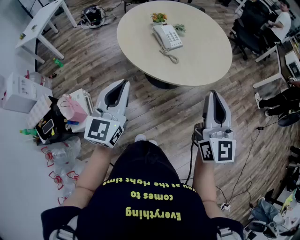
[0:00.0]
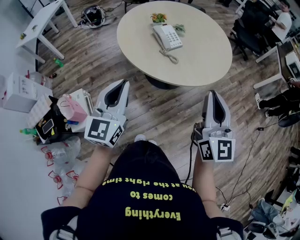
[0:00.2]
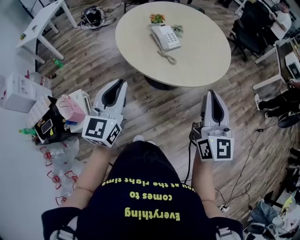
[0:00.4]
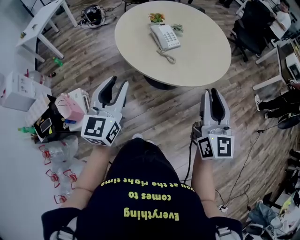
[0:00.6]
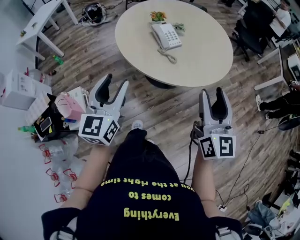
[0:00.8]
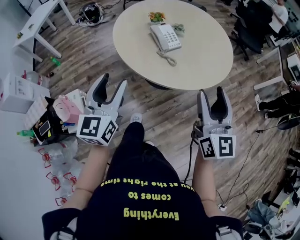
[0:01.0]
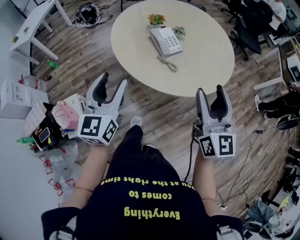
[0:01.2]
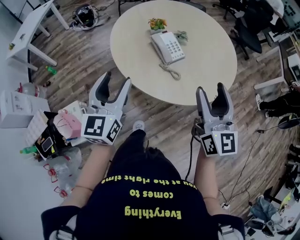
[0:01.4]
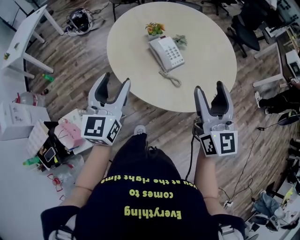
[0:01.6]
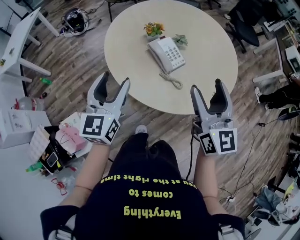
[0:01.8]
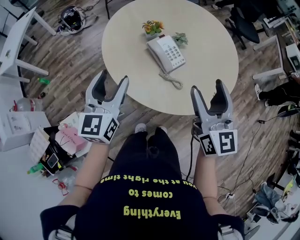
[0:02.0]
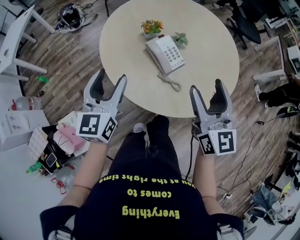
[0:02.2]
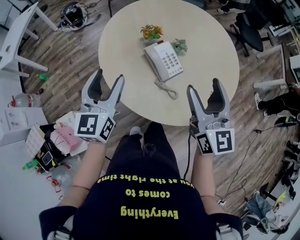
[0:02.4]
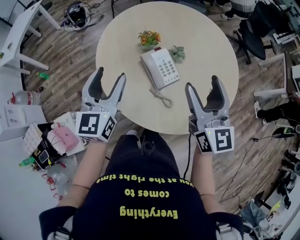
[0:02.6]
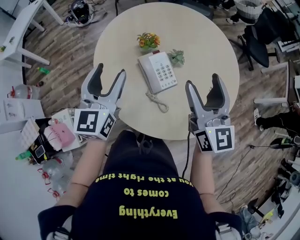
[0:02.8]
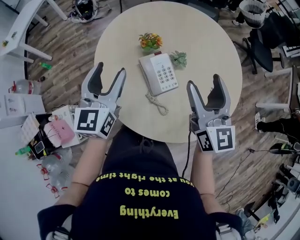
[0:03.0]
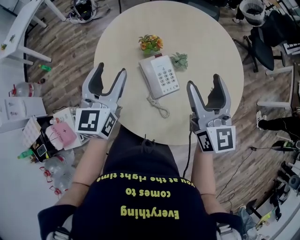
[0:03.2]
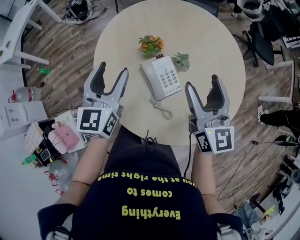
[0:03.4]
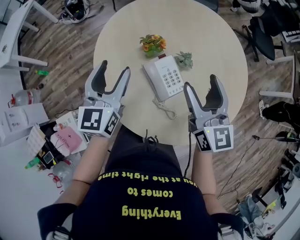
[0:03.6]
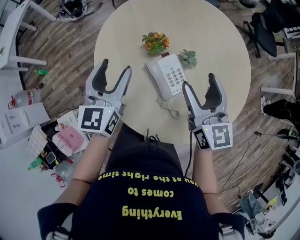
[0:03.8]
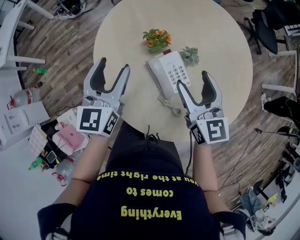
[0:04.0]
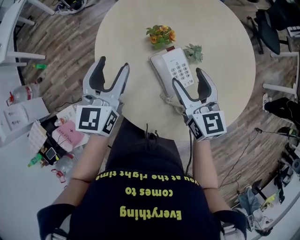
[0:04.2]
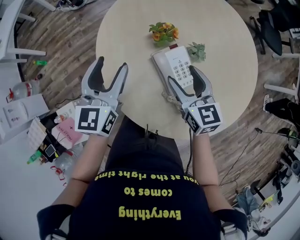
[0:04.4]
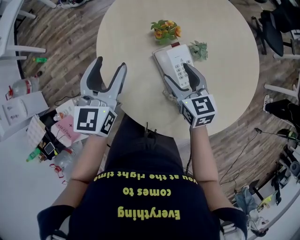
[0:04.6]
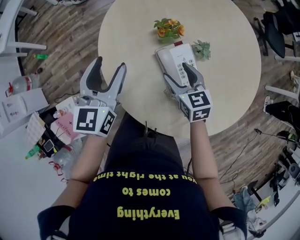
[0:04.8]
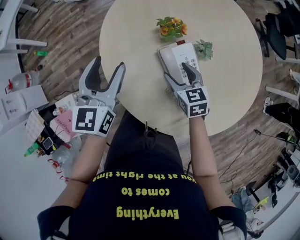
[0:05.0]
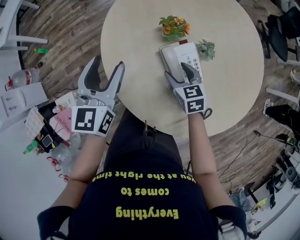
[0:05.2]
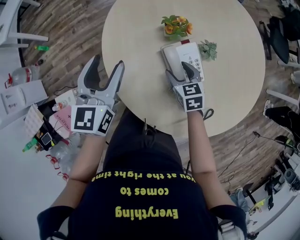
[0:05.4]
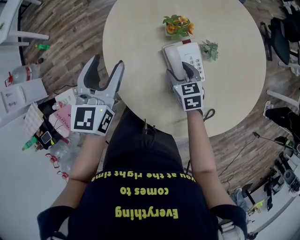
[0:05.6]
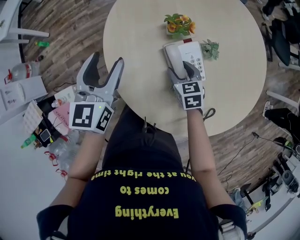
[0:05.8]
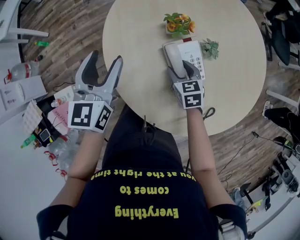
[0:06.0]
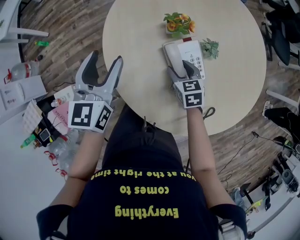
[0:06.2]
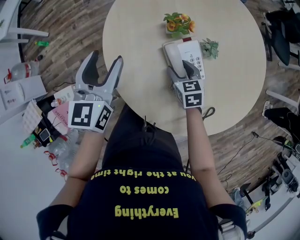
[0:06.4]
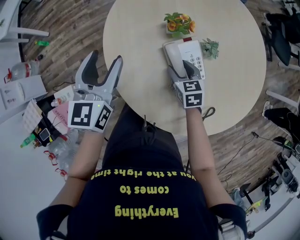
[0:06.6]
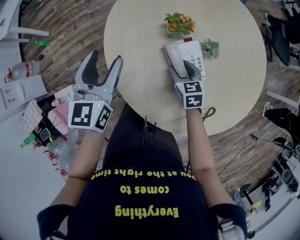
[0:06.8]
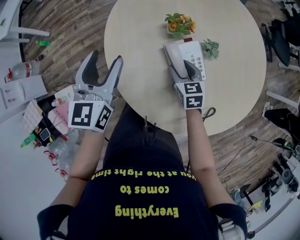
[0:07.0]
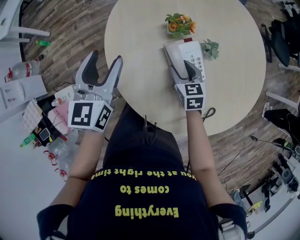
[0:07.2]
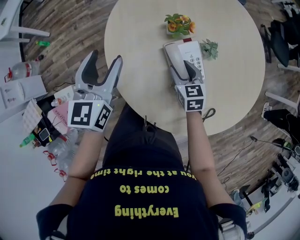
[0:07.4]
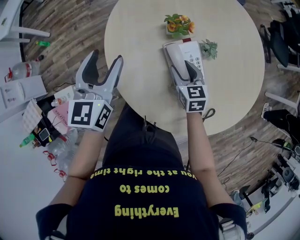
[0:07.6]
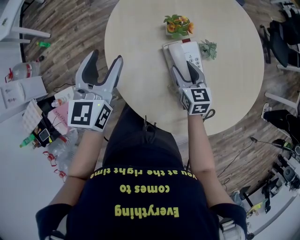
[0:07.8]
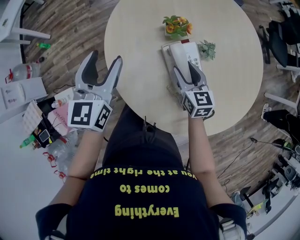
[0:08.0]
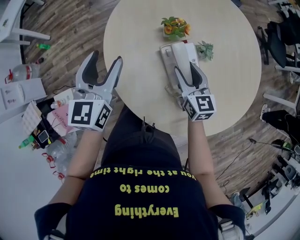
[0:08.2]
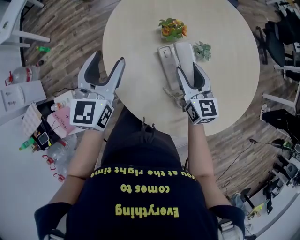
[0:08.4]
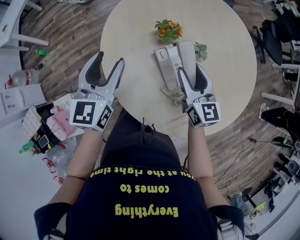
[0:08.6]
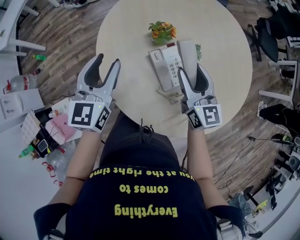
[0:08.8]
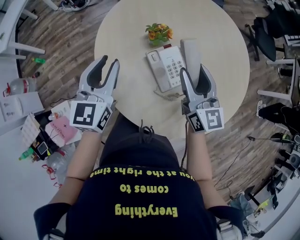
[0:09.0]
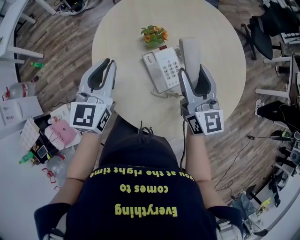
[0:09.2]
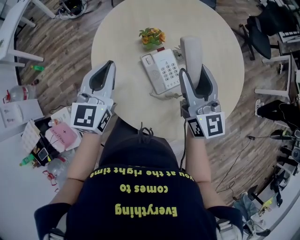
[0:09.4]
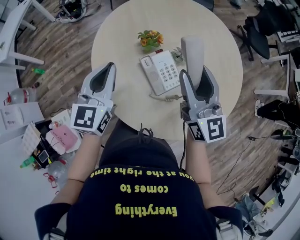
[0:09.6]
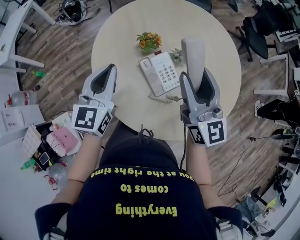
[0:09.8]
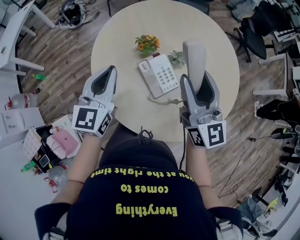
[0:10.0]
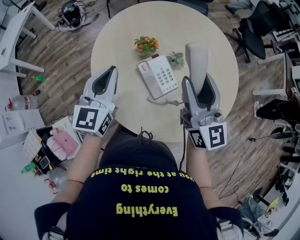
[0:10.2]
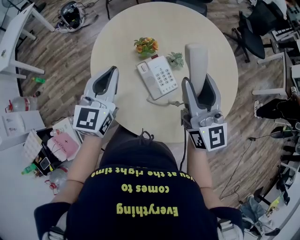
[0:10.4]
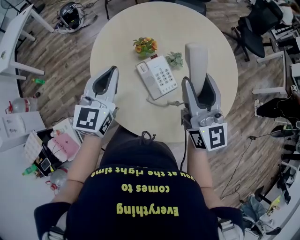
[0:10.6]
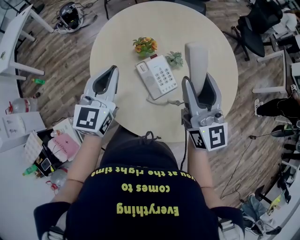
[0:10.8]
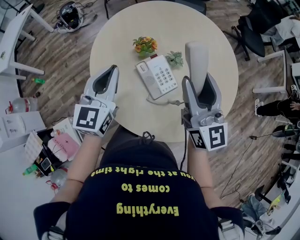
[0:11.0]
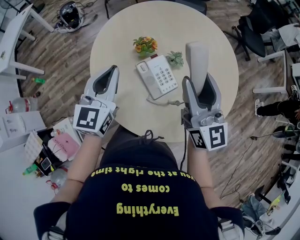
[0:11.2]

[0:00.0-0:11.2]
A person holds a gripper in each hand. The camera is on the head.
0:00.0 to 0:01.6: Both grippers move forward, roughly 25 cm. The right gripper opens up. Meanwhile the left gripper opens its fingers.
0:01.6 to 0:03.2: The grippers both shift forward by roughly 25 cm.
0:03.2 to 0:04.8: The left gripper goes roughly 10 cm downward and to the left. The right gripper shifts some 25 cm downward and to the left, and tips its fingers downward by roughly 30 degrees.
0:04.8 to 0:06.4: The right gripper shifts some 10 cm downward.
0:06.4 to 0:08.0: The right gripper heads upward, covering some 5 cm, and changes its angle by some 20 degrees.
0:08.0 to 0:09.6: The right gripper travels upward by about 25 cm, and angles its fingers upward, by roughly 30 degrees; the left gripper heads to the right, covering about 10 cm, and closes its fingers.
0:09.6 to 0:11.2: The grippers move only a little.

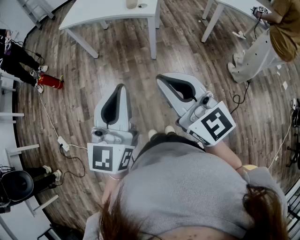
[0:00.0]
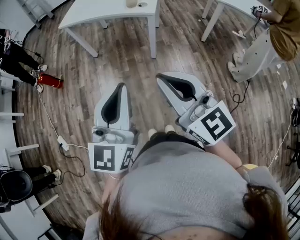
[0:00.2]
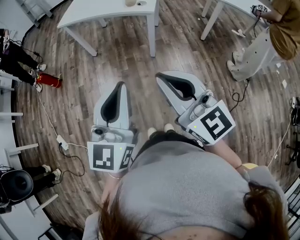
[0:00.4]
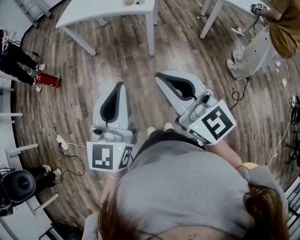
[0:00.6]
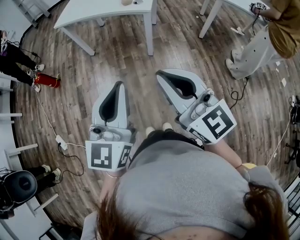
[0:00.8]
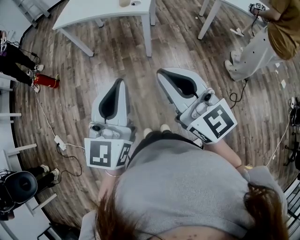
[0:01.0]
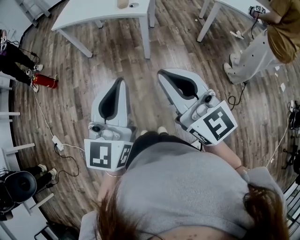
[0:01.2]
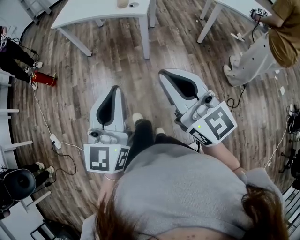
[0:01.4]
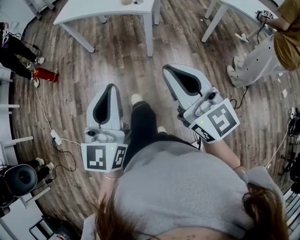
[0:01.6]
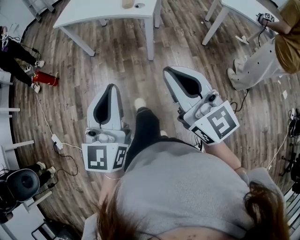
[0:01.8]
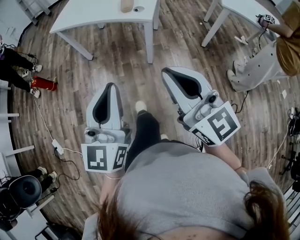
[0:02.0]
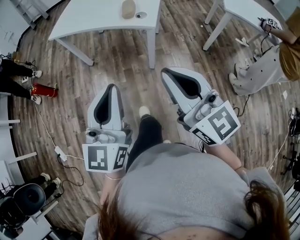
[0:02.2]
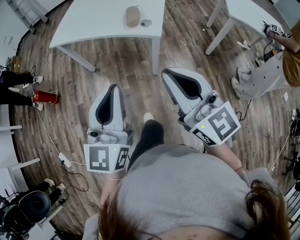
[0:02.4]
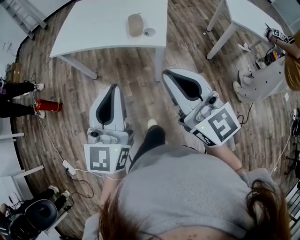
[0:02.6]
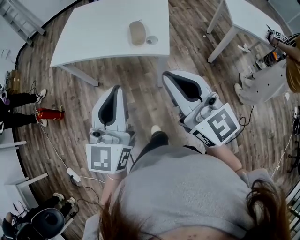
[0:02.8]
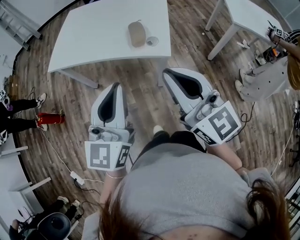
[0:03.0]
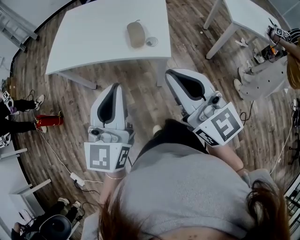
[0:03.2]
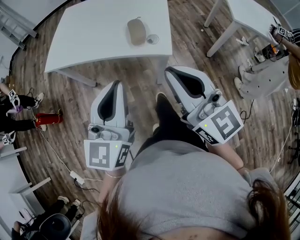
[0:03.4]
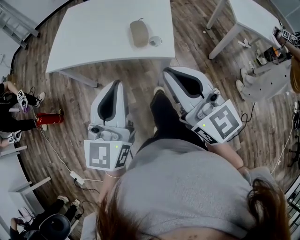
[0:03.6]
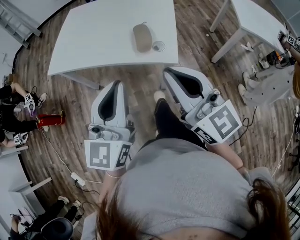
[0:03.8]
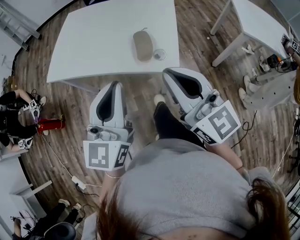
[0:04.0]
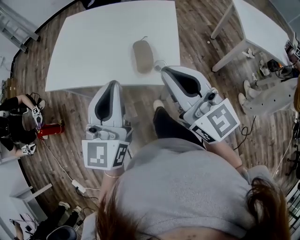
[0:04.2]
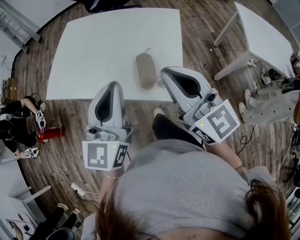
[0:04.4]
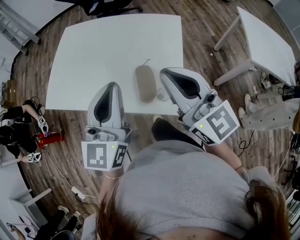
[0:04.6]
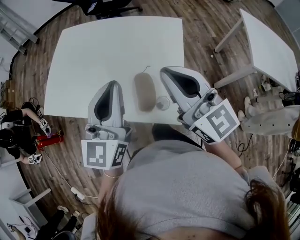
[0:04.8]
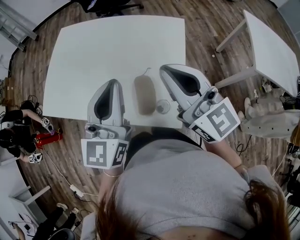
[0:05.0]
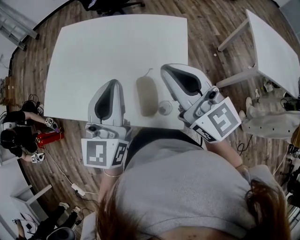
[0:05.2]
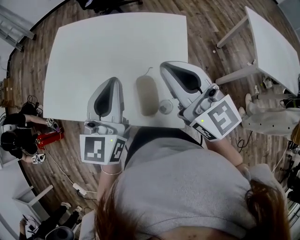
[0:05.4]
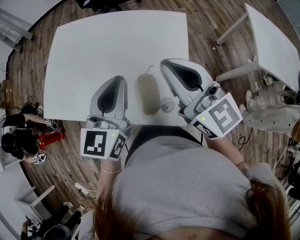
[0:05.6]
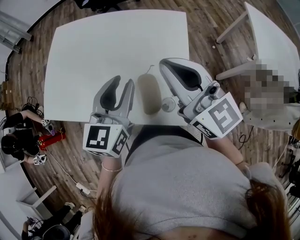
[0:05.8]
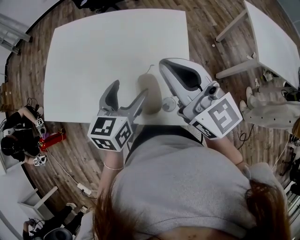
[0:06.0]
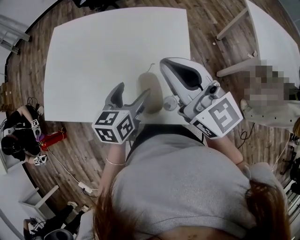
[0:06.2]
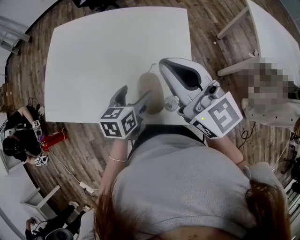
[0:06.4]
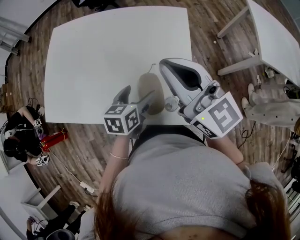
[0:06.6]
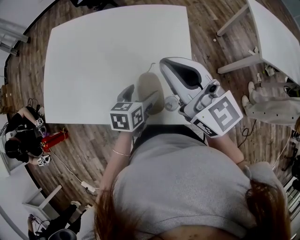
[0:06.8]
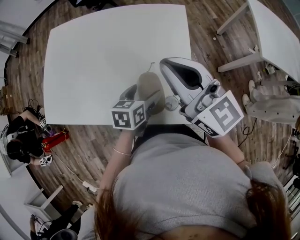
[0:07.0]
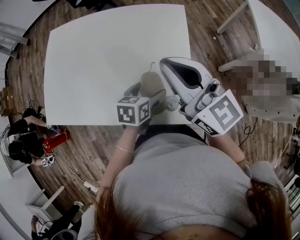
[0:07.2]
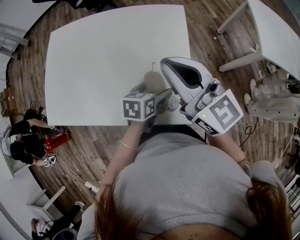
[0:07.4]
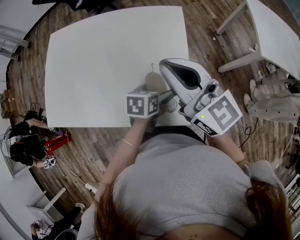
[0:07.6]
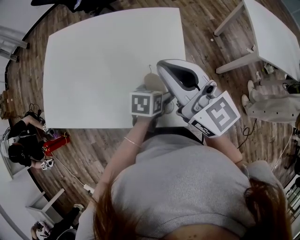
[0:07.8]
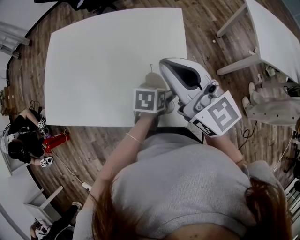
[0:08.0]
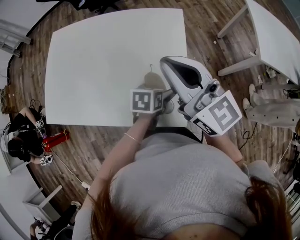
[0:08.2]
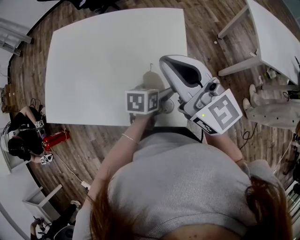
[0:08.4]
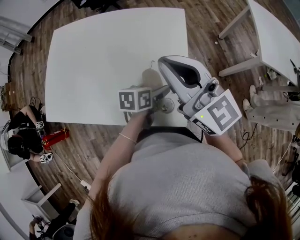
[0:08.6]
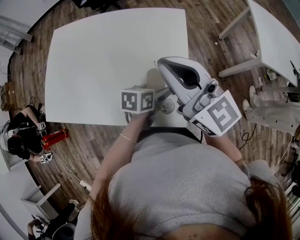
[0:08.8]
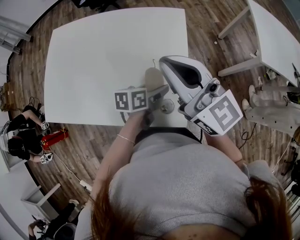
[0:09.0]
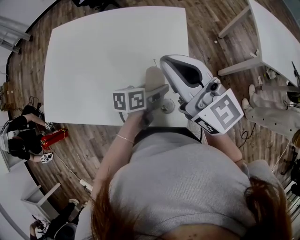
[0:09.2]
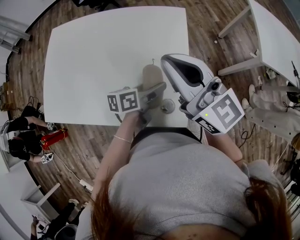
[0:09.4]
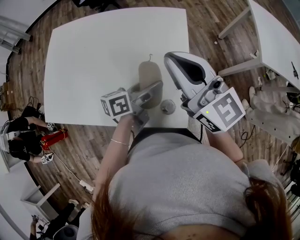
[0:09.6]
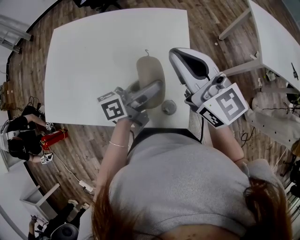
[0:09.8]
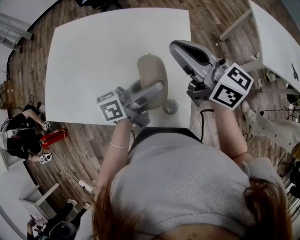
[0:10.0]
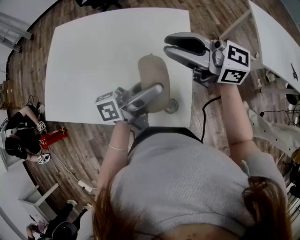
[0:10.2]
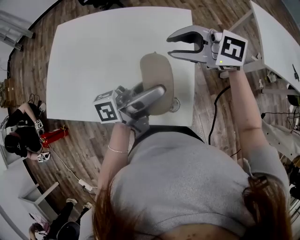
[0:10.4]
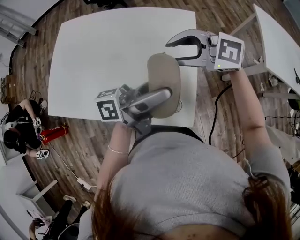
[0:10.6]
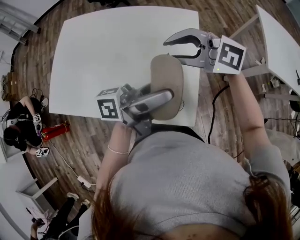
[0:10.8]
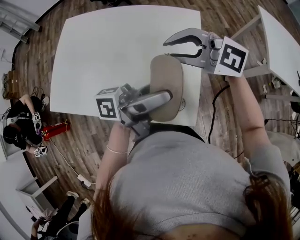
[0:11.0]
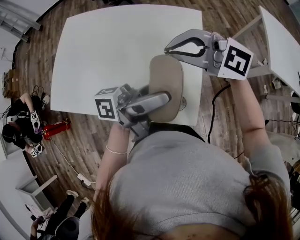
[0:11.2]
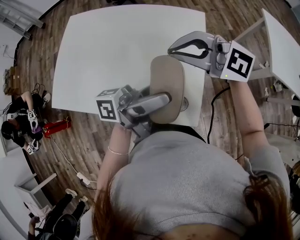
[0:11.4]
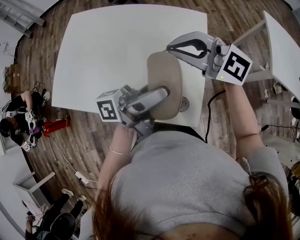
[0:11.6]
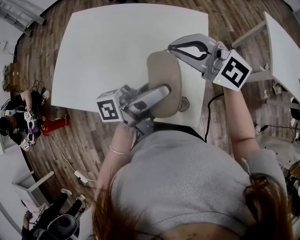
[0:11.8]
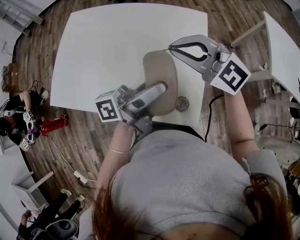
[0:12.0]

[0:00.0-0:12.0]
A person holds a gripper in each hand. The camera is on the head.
0:00.0 to 0:01.6: The left gripper moves roughly 5 cm. Meanwhile the right gripper travels to the right by some 10 cm.
0:01.6 to 0:03.0: The two grippers go approximately 35 cm forward.
0:03.0 to 0:04.4: Both grippers move forward, some 20 cm.
0:04.4 to 0:06.0: The right gripper goes roughly 15 cm forward; the left gripper moves forward and downward, about 20 cm, swivels approximately 30 degrees, and opens its fingers.
0:06.0 to 0:07.6: The left gripper shifts roughly 15 cm downward and to the right, and turns by approximately 30 degrees.
0:07.6 to 0:09.0: The grippers stay close to where they were, moving slightly.
0:09.0 to 0:10.4: The left gripper is displaced upward by roughly 20 cm, and points its fingers some 50 degrees further upward, while the right gripper shifts approximately 5 cm downward, turns by roughly 50 degrees, and opens up.
0:10.4 to 0:12.0: The right gripper changes place by approximately 5 cm, and closes.

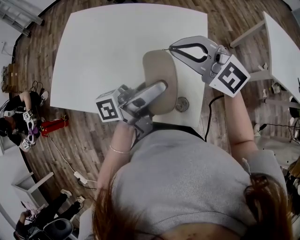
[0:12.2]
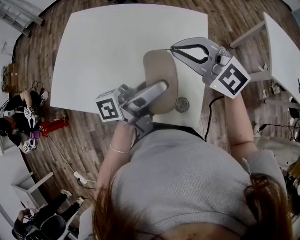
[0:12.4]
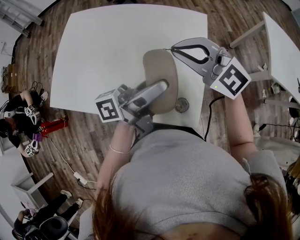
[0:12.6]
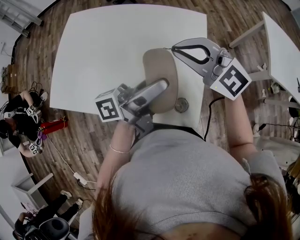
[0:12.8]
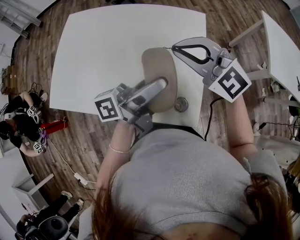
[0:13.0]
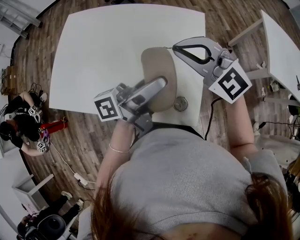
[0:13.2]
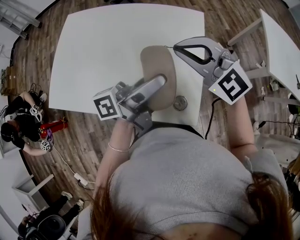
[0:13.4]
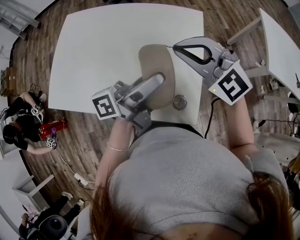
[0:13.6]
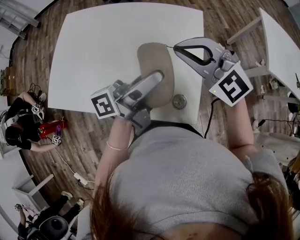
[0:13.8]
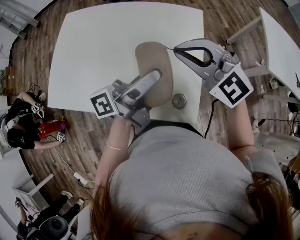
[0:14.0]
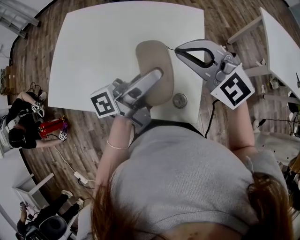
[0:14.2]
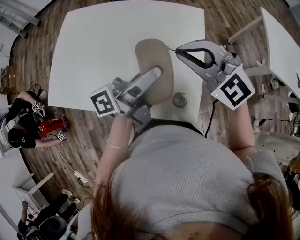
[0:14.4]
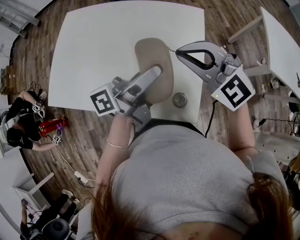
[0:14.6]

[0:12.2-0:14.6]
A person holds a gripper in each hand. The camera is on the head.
0:12.2 to 0:14.6: The grippers stay close to where they were, moving slightly.
